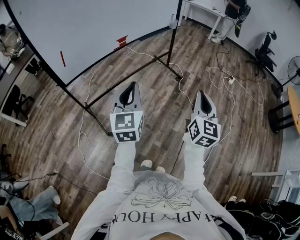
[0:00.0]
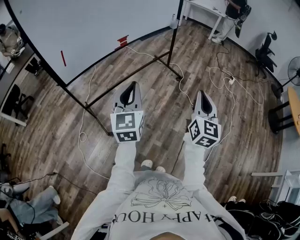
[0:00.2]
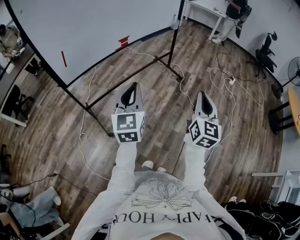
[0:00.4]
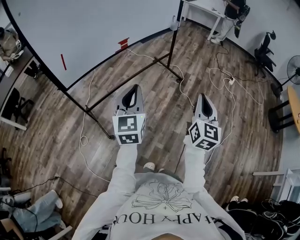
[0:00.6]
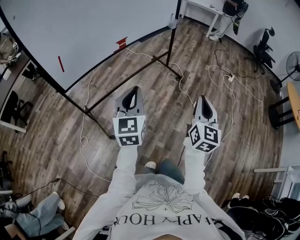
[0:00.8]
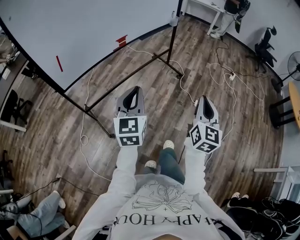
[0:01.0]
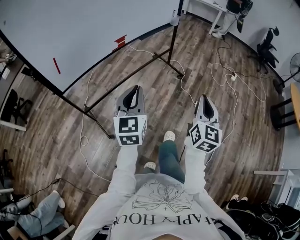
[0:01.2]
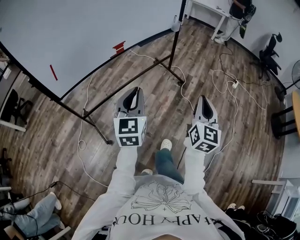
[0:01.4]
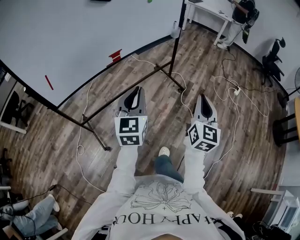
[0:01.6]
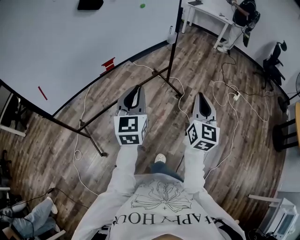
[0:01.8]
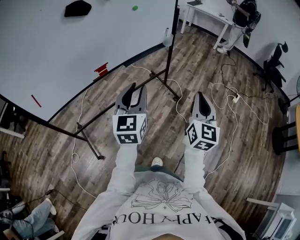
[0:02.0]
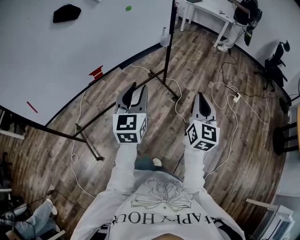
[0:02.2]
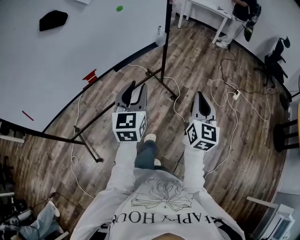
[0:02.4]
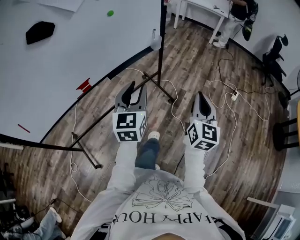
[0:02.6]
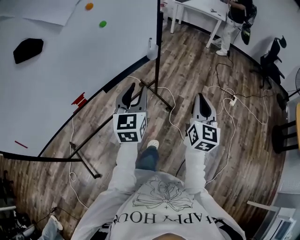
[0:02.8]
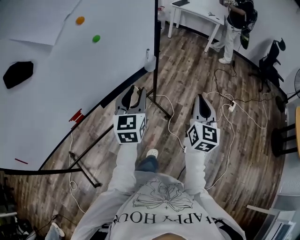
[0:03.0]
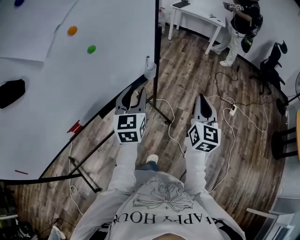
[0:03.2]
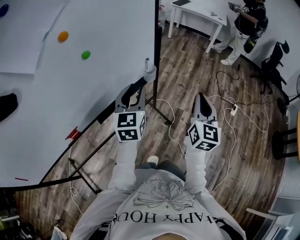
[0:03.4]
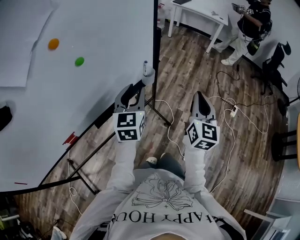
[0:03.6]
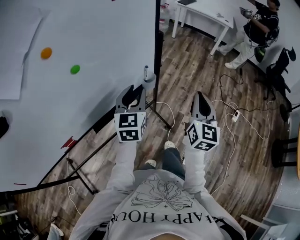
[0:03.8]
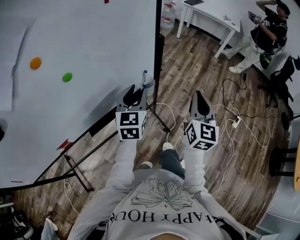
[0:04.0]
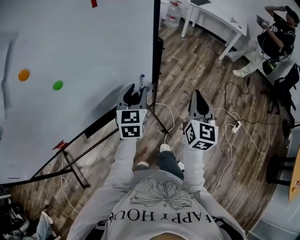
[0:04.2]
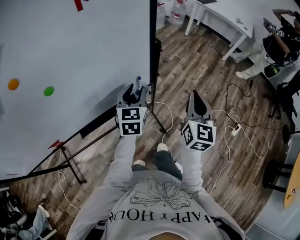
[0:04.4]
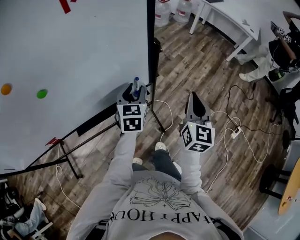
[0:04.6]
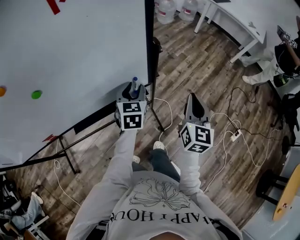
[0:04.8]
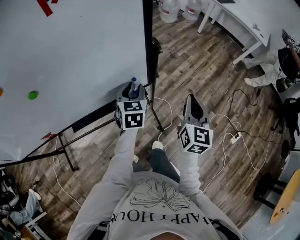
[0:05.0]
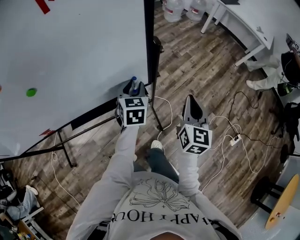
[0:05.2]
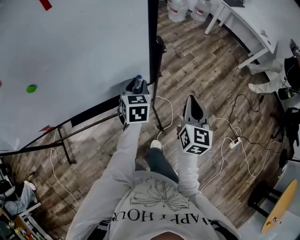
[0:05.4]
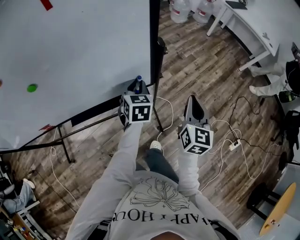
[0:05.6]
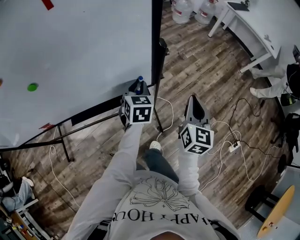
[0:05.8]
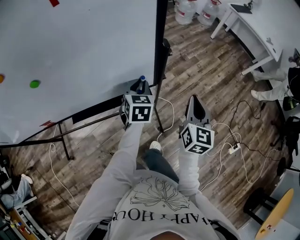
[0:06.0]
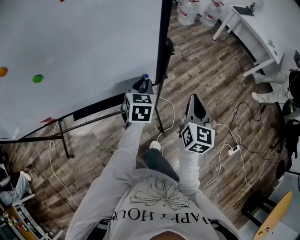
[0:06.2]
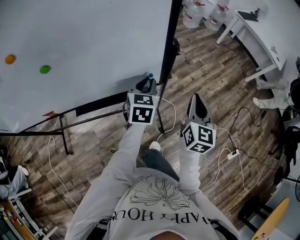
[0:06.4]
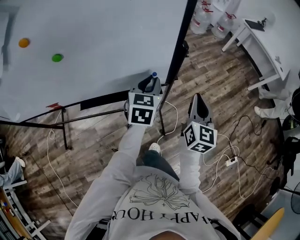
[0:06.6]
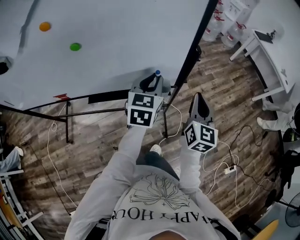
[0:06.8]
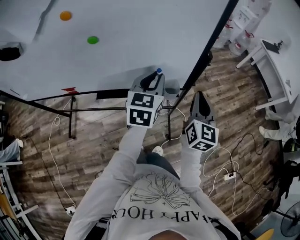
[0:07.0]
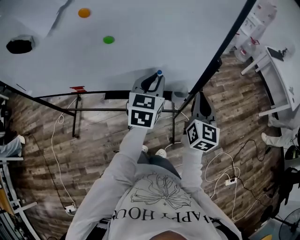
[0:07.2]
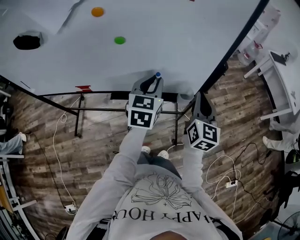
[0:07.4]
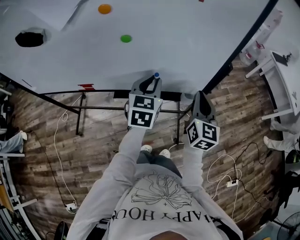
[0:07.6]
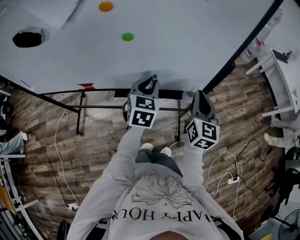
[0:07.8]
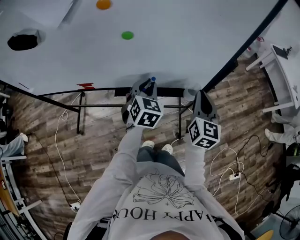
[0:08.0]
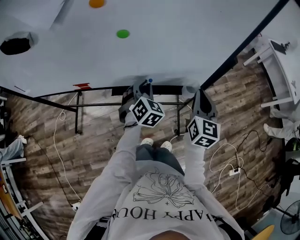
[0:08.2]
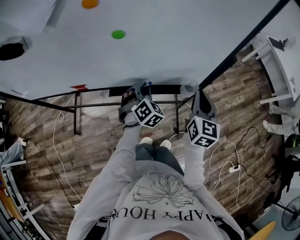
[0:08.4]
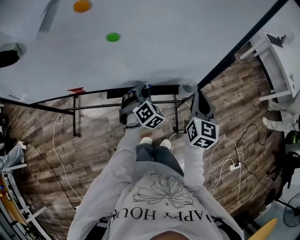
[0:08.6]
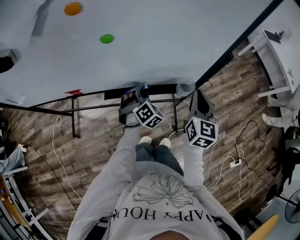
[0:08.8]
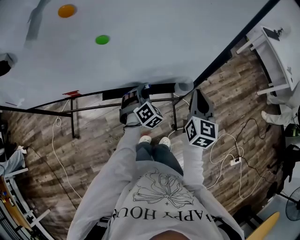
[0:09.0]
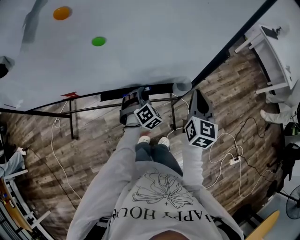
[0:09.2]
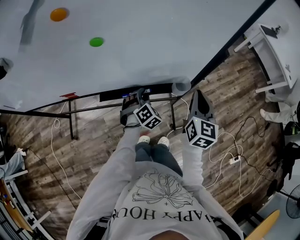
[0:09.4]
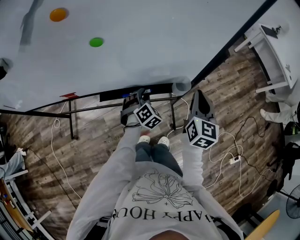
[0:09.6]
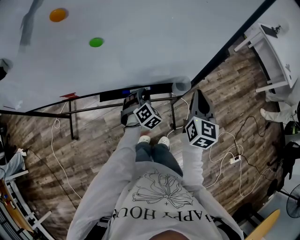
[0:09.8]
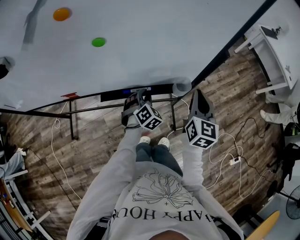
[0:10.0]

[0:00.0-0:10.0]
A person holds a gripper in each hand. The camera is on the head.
0:00.0 to 0:01.4: The two grippers go about 15 cm forward.
0:01.4 to 0:02.8: The two grippers travel together, forward, roughly 50 cm. The left gripper opens up.
0:02.8 to 0:04.2: Both grippers move forward, approximately 40 cm.
0:04.2 to 0:05.8: The left gripper travels downward and forward by approximately 15 cm, and rotates approximately 30 degrees. Meanwhile the right gripper is displaced forward and downward by roughly 15 cm.
0:05.8 to 0:07.2: The right gripper shifts some 15 cm to the left and upward, and changes its angle by some 20 degrees. The left gripper shifts approximately 20 cm upward, to the left and backward.
0:07.2 to 0:08.6: The left gripper travels downward and to the left by roughly 20 cm, and twists roughly 40 degrees clockwise, seen from behind. The right gripper shifts by some 5 cm.
0:08.6 to 0:10.0: The left gripper moves downward, roughly 5 cm.

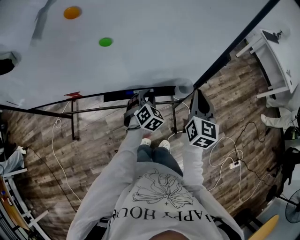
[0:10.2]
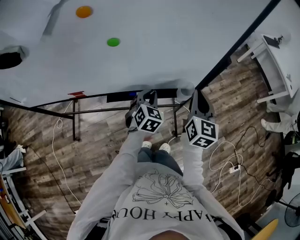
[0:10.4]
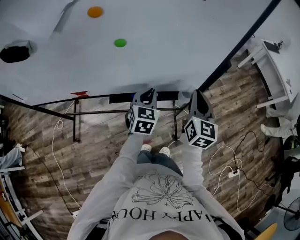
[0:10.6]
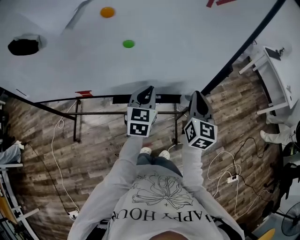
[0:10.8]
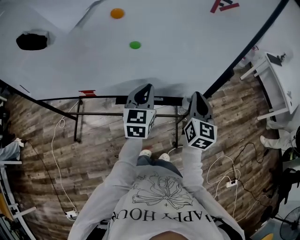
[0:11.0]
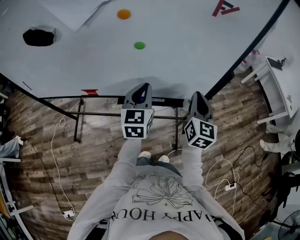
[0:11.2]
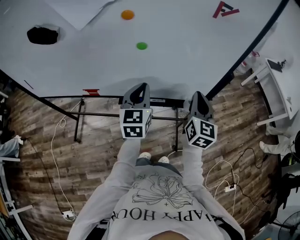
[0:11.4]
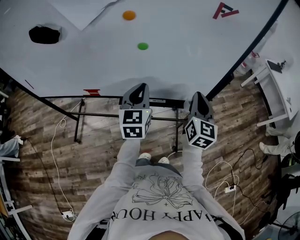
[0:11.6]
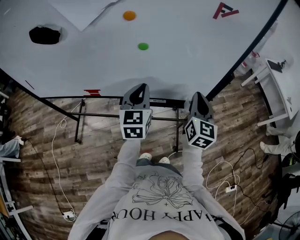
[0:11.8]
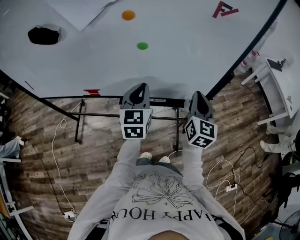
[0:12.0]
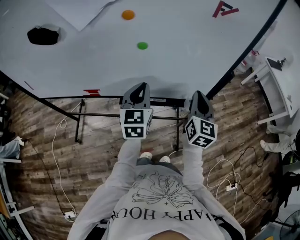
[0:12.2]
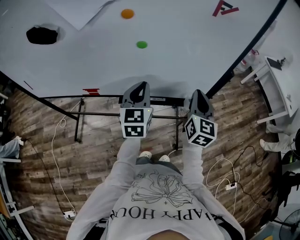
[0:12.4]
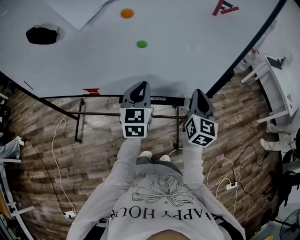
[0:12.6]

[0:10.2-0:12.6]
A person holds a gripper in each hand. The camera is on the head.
0:10.2 to 0:11.4: The right gripper travels upward and to the left by roughly 10 cm. Meanwhile the left gripper heads upward and to the left, covering roughly 25 cm, and angles its fingers upward, by some 30 degrees.
0:11.4 to 0:12.6: Both grippers stay put.

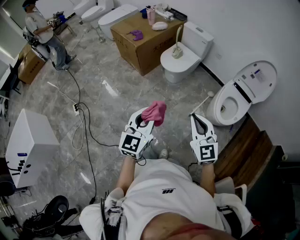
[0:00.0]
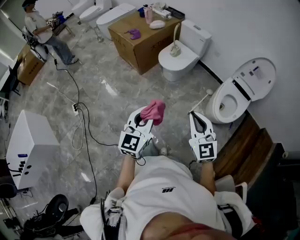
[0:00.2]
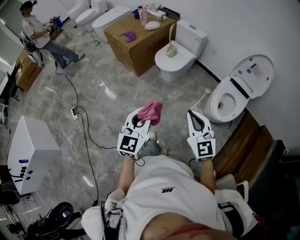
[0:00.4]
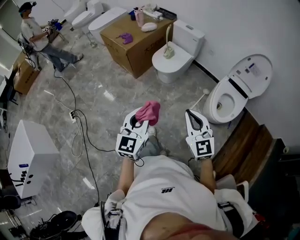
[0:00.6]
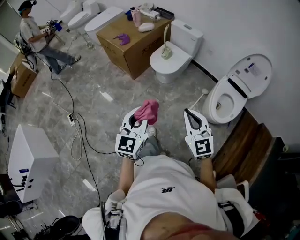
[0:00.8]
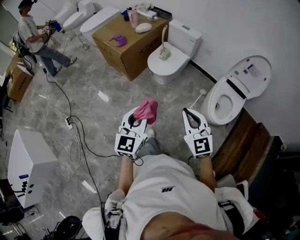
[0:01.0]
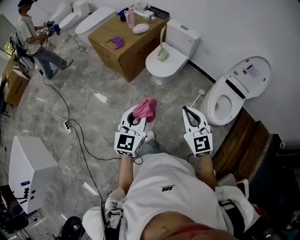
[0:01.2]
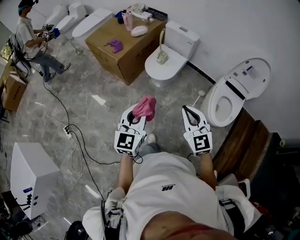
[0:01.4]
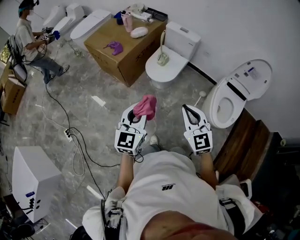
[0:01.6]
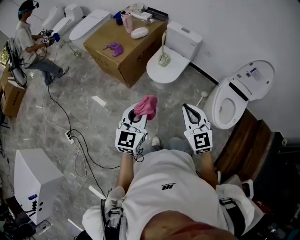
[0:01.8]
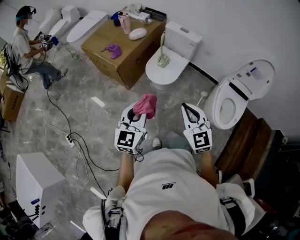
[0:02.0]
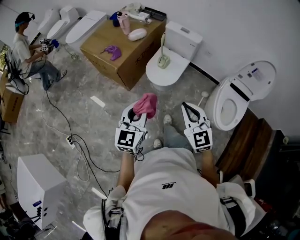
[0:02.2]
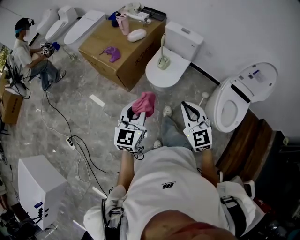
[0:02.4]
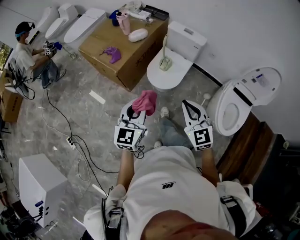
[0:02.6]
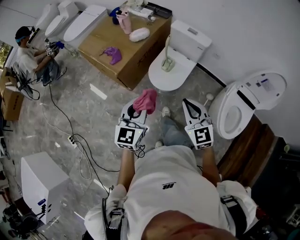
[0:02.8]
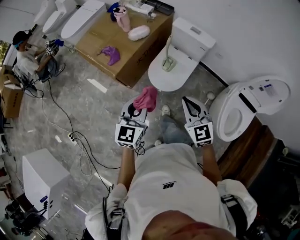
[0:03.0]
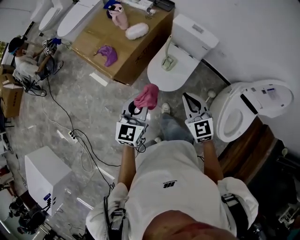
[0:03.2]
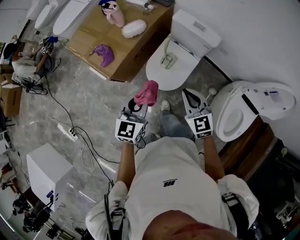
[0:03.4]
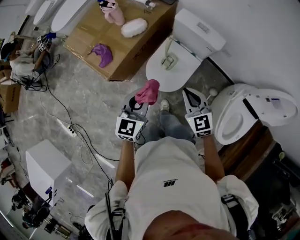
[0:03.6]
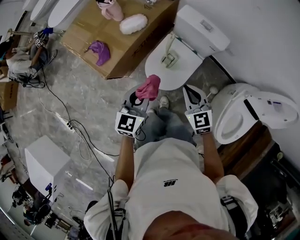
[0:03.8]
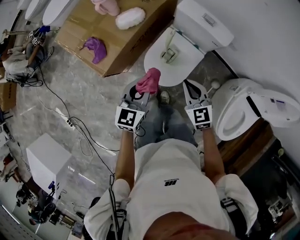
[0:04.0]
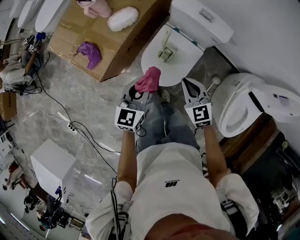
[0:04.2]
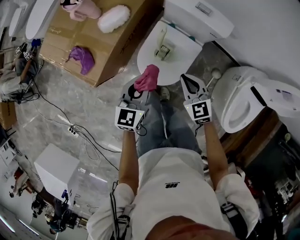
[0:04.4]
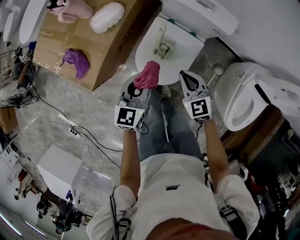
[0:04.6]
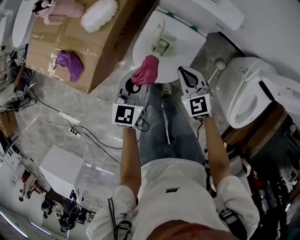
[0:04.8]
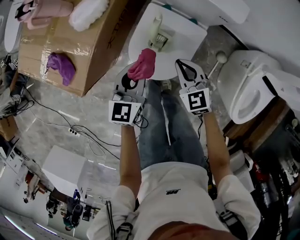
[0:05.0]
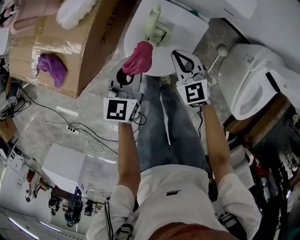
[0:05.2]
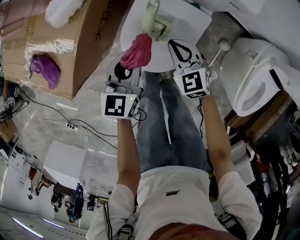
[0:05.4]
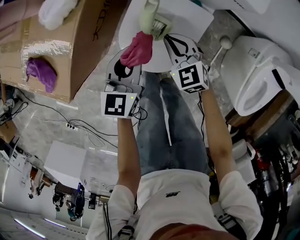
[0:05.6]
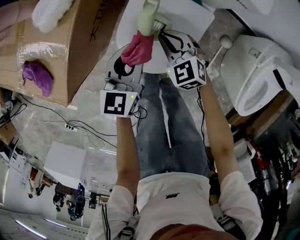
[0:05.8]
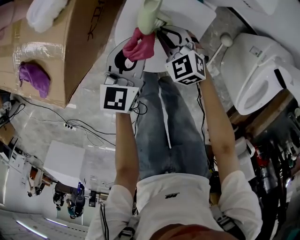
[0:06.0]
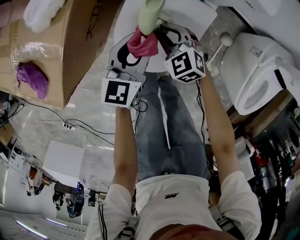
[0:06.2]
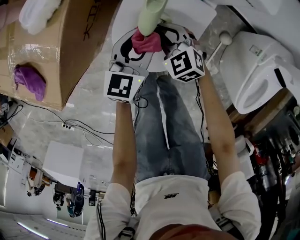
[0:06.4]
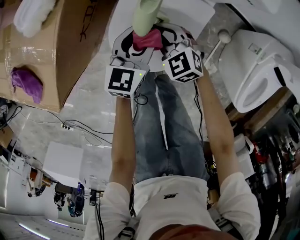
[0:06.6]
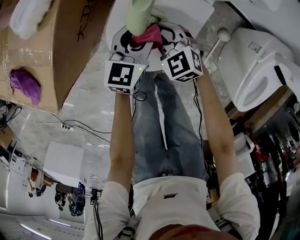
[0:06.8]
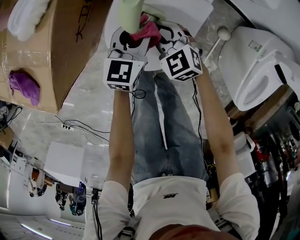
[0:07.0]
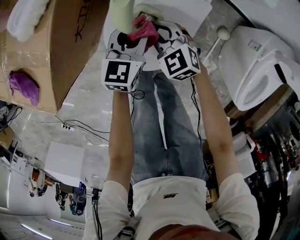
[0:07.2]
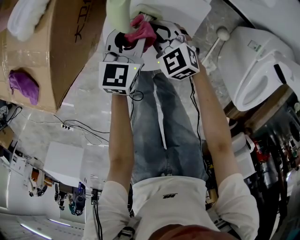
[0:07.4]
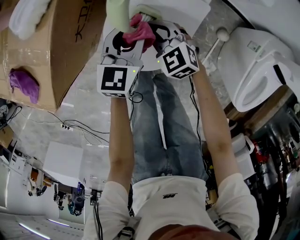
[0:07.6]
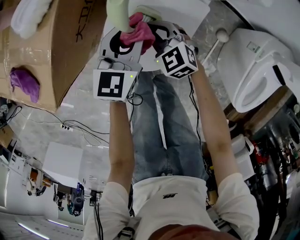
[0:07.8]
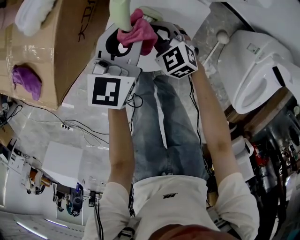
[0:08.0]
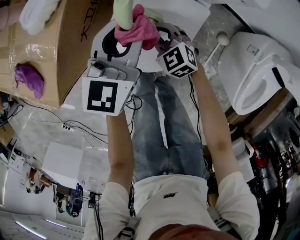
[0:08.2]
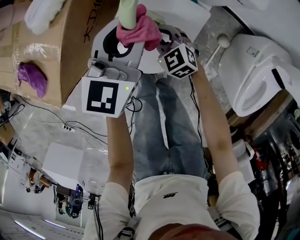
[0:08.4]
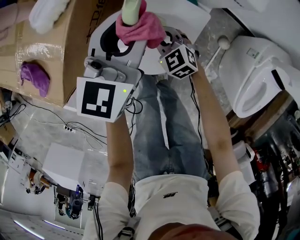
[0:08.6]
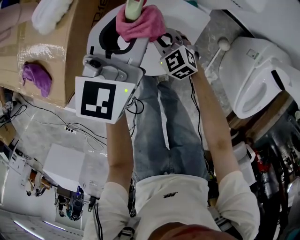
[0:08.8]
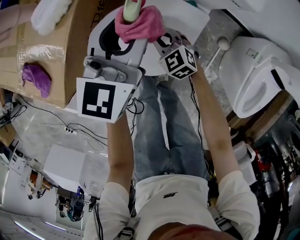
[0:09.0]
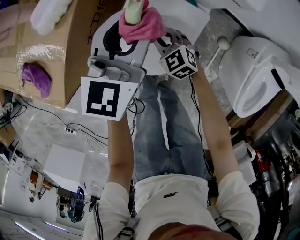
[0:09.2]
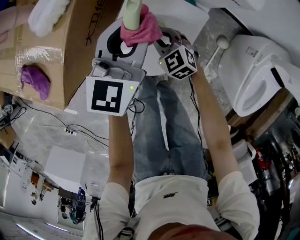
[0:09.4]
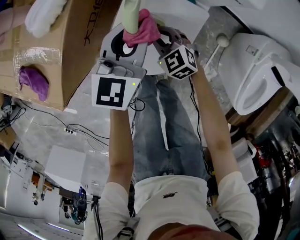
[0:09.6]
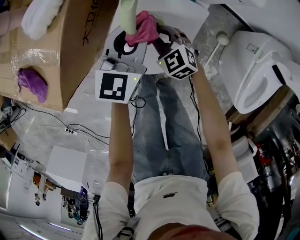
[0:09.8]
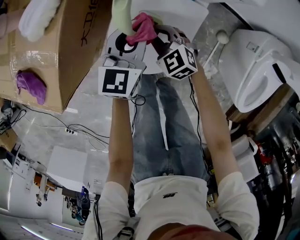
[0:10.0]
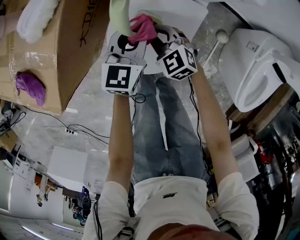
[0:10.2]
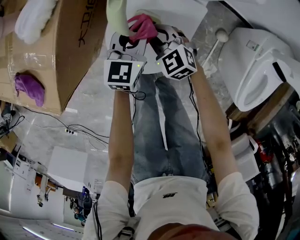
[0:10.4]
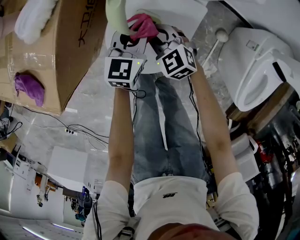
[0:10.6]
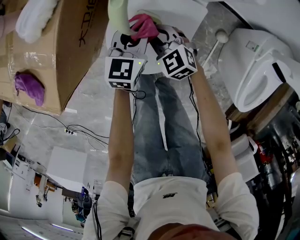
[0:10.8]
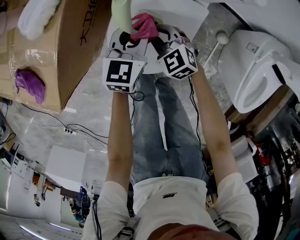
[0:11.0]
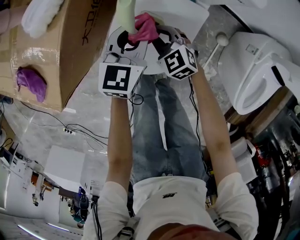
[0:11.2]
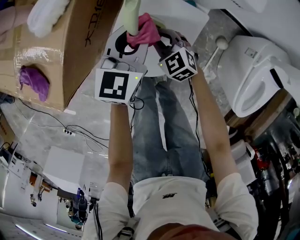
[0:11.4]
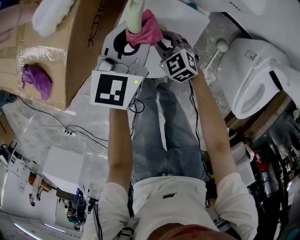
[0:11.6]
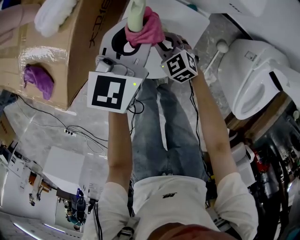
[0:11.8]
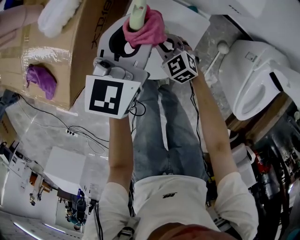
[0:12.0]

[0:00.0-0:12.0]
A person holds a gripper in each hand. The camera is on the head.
0:00.0 to 0:01.6: Both grippers travel together forward, approximately 25 cm.
0:01.6 to 0:03.0: Both grippers move forward, about 30 cm.
0:03.0 to 0:04.4: Both grippers travel together forward and downward, some 35 cm.
0:04.4 to 0:06.0: The left gripper shifts roughly 25 cm downward and forward; the right gripper is displaced downward by some 25 cm.
0:06.0 to 0:07.6: The left gripper ends up approximately 5 cm from where it was.
0:07.6 to 0:09.0: The left gripper moves upward, some 20 cm.
0:09.0 to 0:10.4: The left gripper goes some 20 cm downward.
0:10.4 to 0:12.0: The left gripper moves upward, roughly 20 cm.
